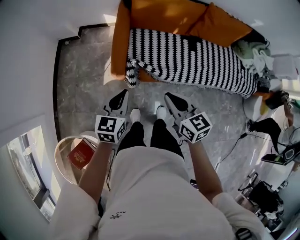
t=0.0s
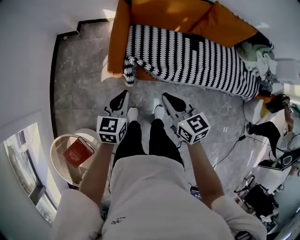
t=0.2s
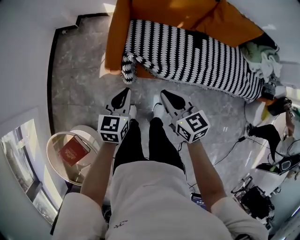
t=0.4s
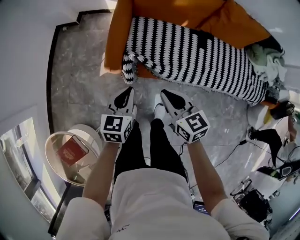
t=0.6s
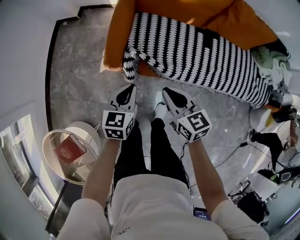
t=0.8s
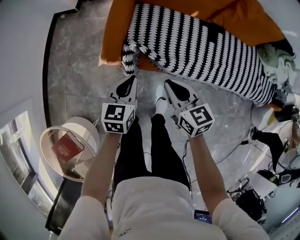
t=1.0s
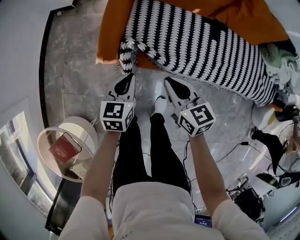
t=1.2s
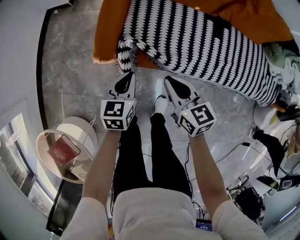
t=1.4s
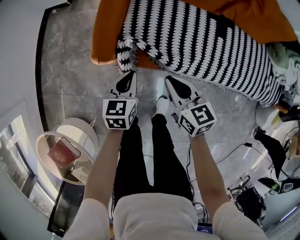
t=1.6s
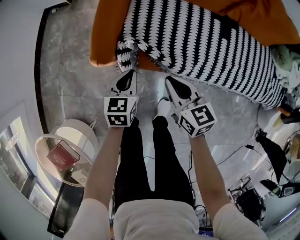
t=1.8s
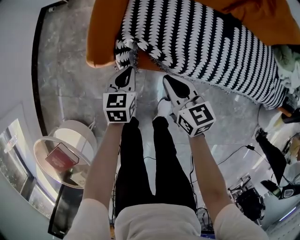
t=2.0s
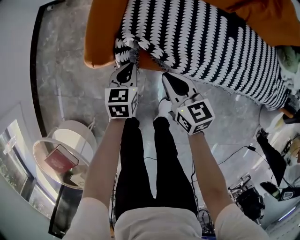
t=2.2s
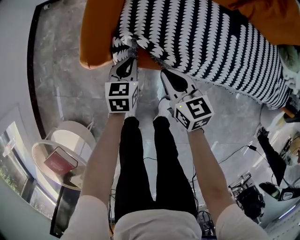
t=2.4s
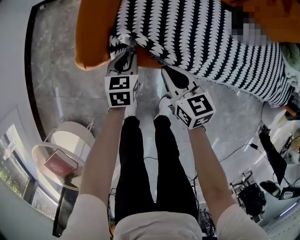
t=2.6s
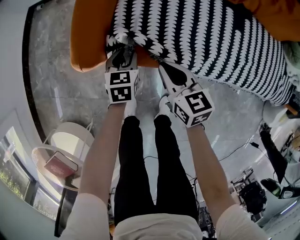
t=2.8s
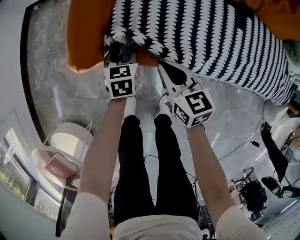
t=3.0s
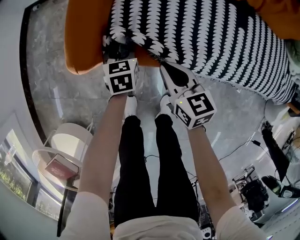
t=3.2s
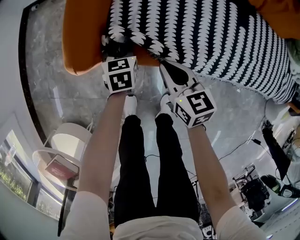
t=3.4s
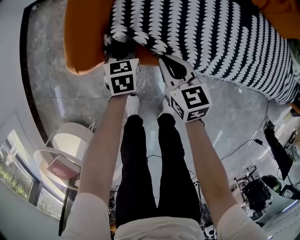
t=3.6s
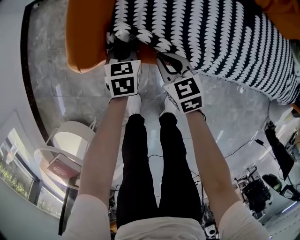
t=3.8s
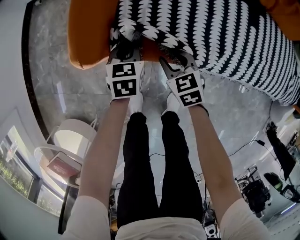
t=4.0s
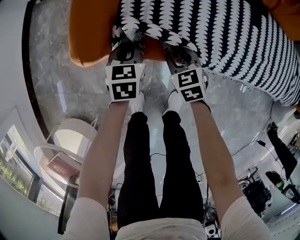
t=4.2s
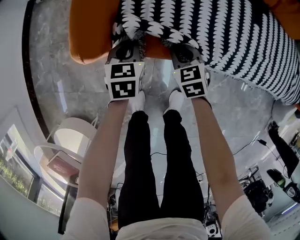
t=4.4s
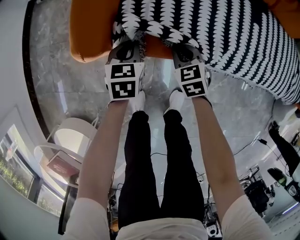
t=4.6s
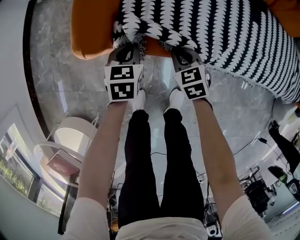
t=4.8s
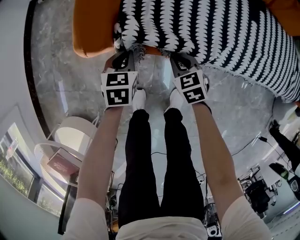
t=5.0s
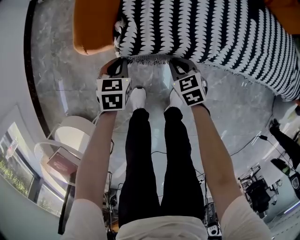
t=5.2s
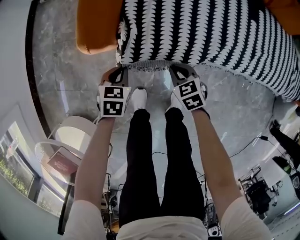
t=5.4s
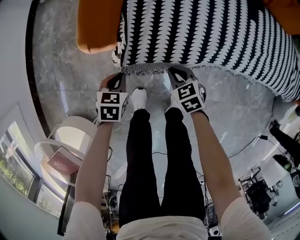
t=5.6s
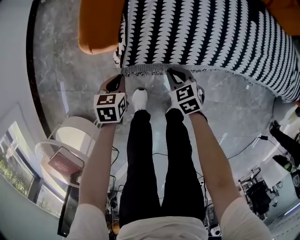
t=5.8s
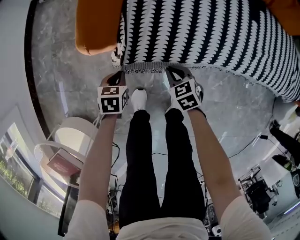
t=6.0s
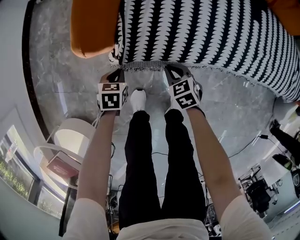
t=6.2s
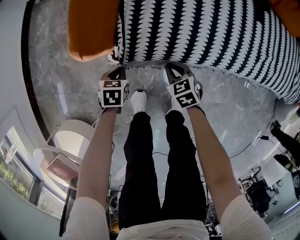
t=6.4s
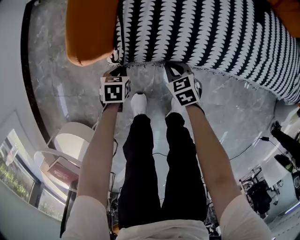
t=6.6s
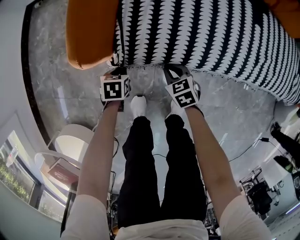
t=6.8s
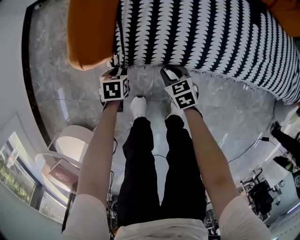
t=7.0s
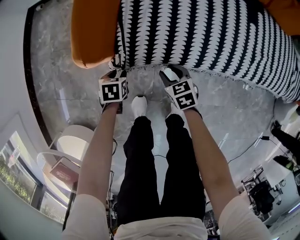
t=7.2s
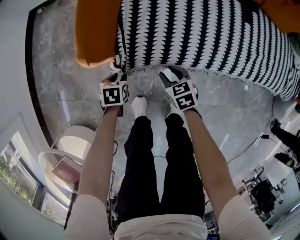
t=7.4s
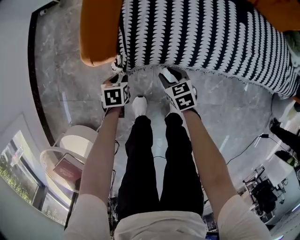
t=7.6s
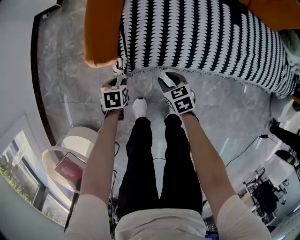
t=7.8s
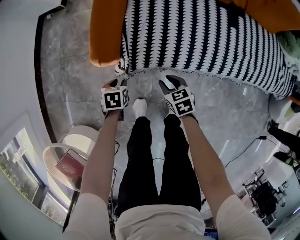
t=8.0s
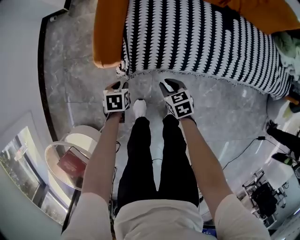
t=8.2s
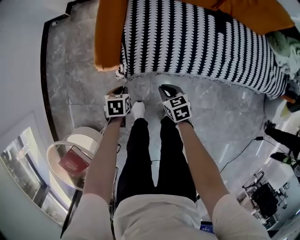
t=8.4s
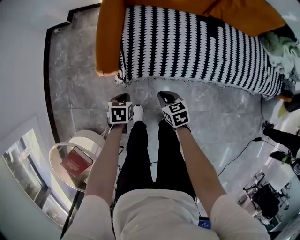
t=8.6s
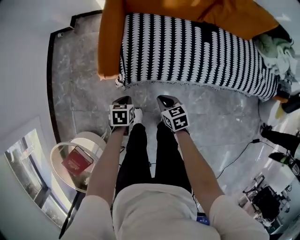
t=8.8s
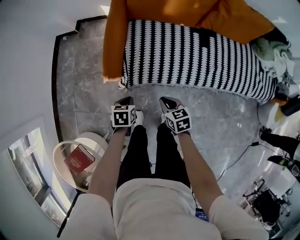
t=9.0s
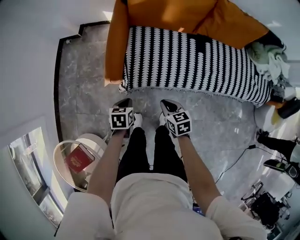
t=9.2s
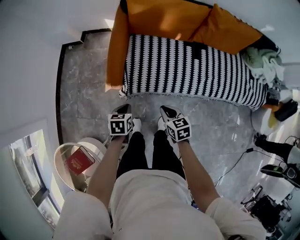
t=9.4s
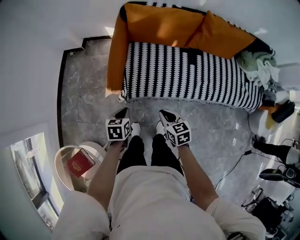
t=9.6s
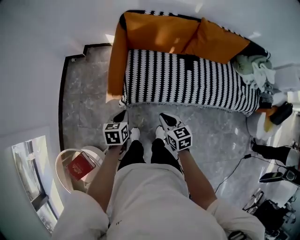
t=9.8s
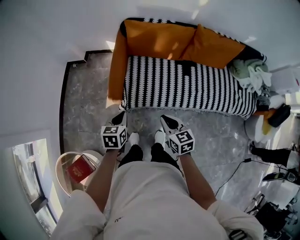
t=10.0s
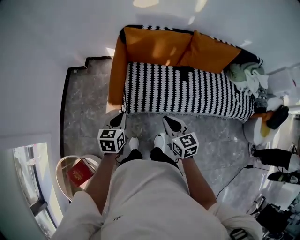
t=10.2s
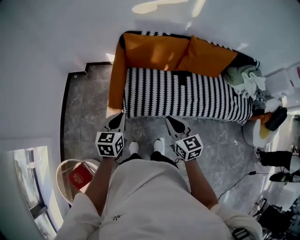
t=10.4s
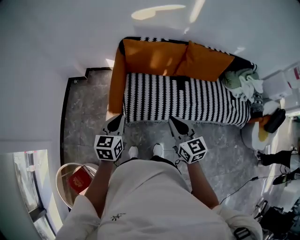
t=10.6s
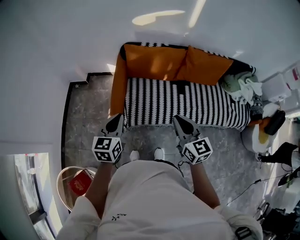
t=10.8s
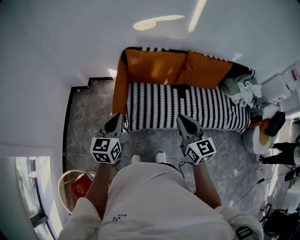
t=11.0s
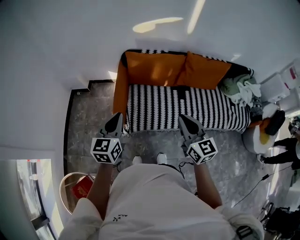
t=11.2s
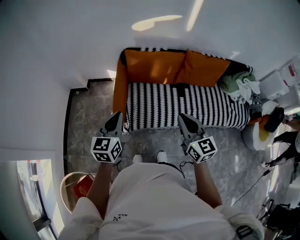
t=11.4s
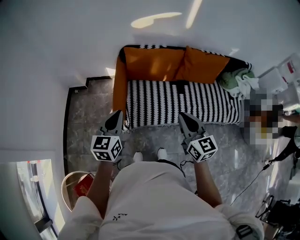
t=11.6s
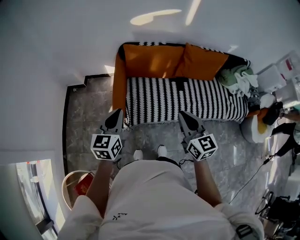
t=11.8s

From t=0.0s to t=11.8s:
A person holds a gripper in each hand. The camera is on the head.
From t=0.0s to t=1.4s: Both grippers move downward, roughly 25 cm.
From t=1.4s to t=3.0s: The left gripper travels downward and forward by approximately 25 cm, and opens up; the right gripper moves downward, approximately 20 cm.
From t=3.0s to t=4.4s: The right gripper heads downward, covering approximately 10 cm, changes its angle by approximately 30 degrees, and opens, then closes again. The left gripper closes.
From t=4.4s to t=6.0s: The right gripper moves backward and downward, roughly 10 cm. Meanwhile the left gripper goes roughly 15 cm backward, to the left and downward.
From t=6.0s to t=7.4s: The left gripper opens up; the right gripper opens.
From t=7.4s to t=8.8s: Both grippers travel together upward, some 25 cm. The right gripper closes; the left gripper closes.
From t=8.8s to t=10.4s: The two grippers go roughly 40 cm upward. The left gripper angles its fingers upward, by roughly 30 degrees. Meanwhile the right gripper swivels about 30 degrees.
From t=10.4s to t=11.8s: Both grippers move upward, approximately 10 cm.

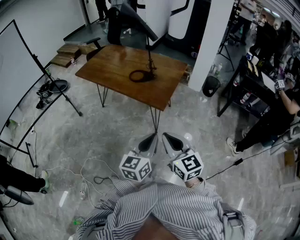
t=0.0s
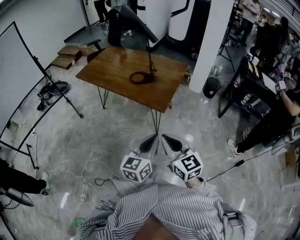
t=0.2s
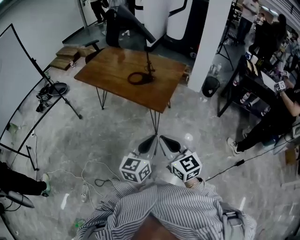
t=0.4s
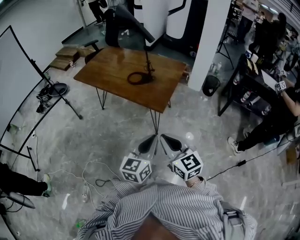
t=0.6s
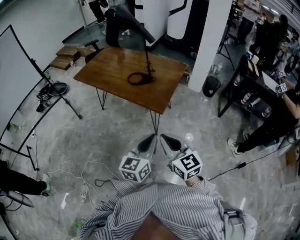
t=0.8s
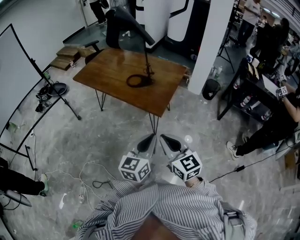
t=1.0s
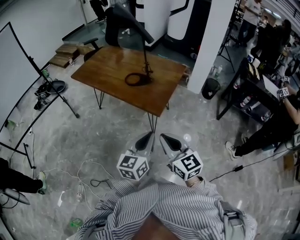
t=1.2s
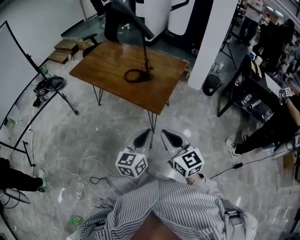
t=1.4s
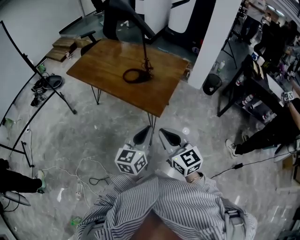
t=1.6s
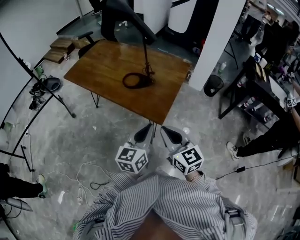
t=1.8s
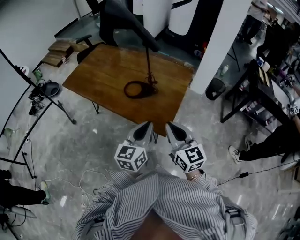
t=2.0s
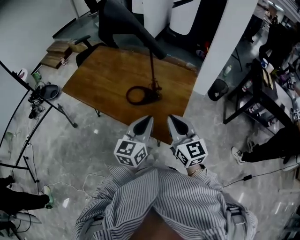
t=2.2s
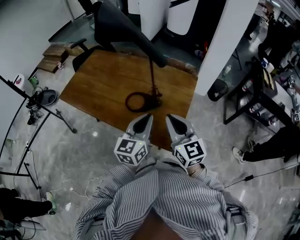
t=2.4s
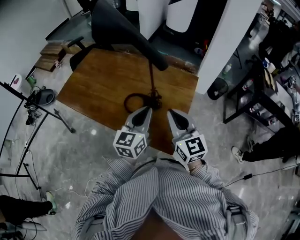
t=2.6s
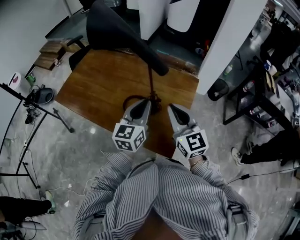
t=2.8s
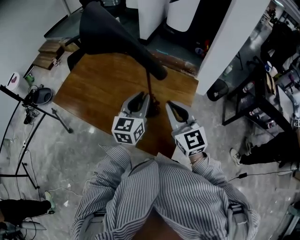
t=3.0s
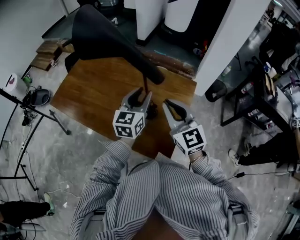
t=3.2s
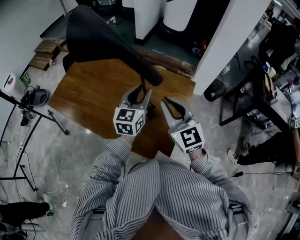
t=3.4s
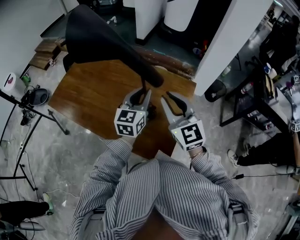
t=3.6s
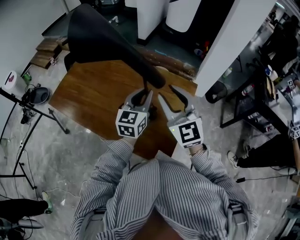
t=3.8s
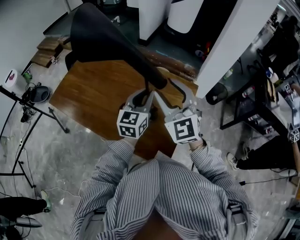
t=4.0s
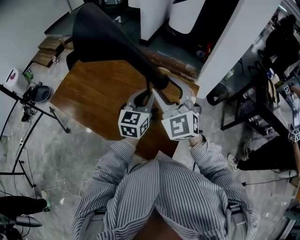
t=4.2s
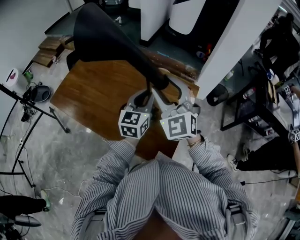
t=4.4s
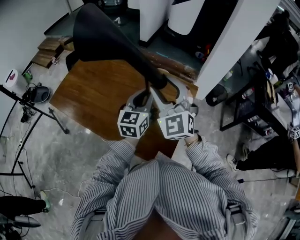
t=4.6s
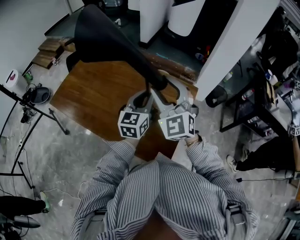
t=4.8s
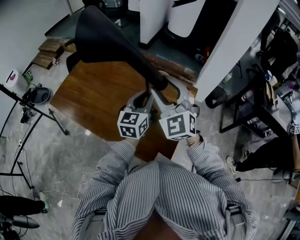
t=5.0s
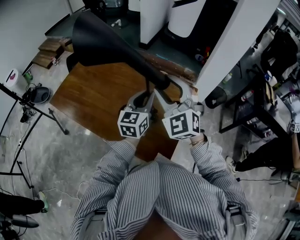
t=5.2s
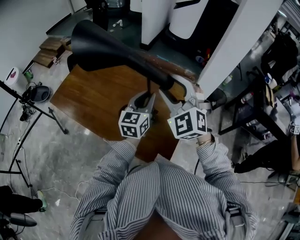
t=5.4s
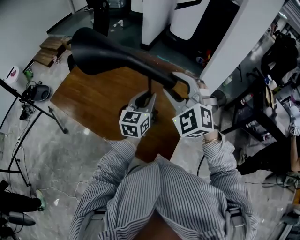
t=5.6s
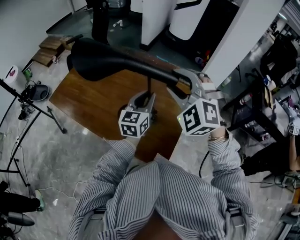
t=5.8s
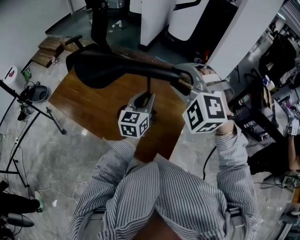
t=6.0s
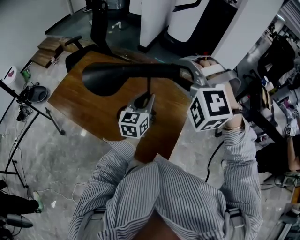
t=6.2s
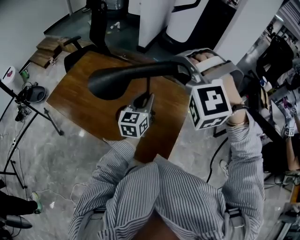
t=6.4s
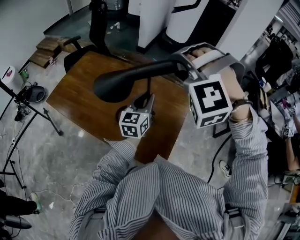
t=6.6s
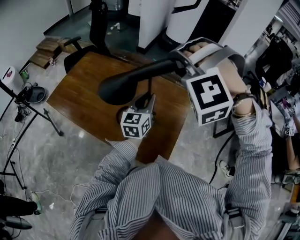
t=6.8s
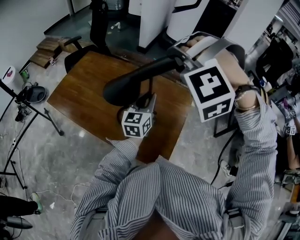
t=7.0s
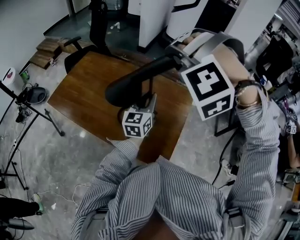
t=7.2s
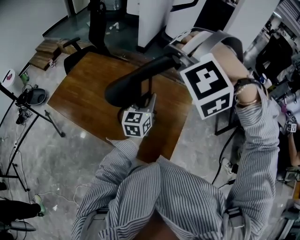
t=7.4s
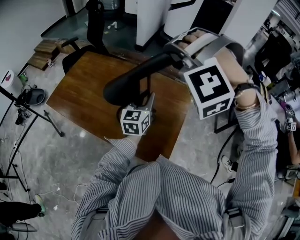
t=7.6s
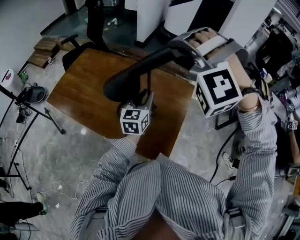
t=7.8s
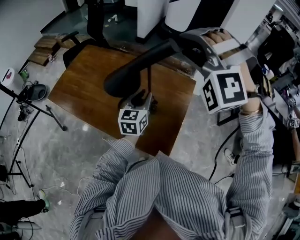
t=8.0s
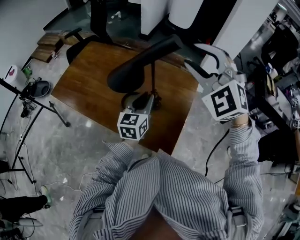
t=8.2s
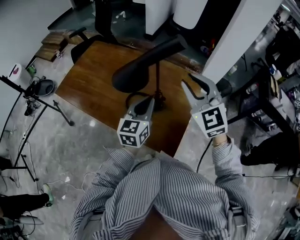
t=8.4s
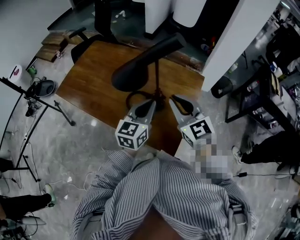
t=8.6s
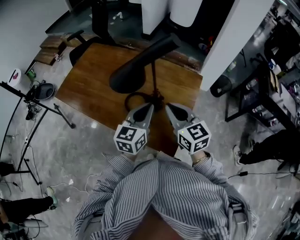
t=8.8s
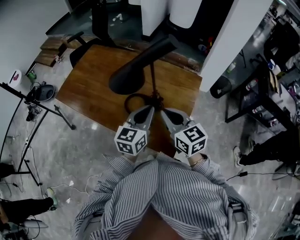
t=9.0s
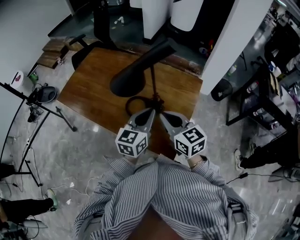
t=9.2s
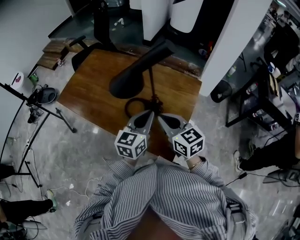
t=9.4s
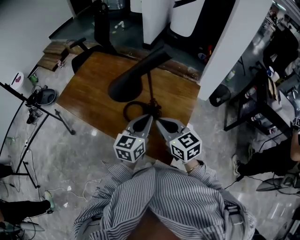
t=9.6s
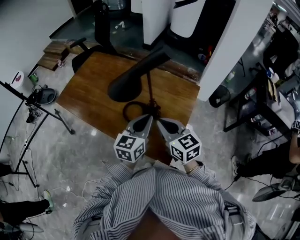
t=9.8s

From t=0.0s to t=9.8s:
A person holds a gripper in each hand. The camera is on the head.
From t=0.0s to t=1.4s: Both grippers move forward, roughly 5 cm.
From t=1.4s to t=2.8s: The pair of grippers is taken forward, approximately 40 cm.
From t=2.8s to t=4.2s: The left gripper goes approximately 10 cm forward, and opens, then closes again, while the right gripper shifts some 15 cm forward and upward, swivels some 40 degrees, and opens its fingers.
From t=4.2s to t=5.6s: The right gripper rotates approximately 20 degrees.
From t=5.6s to t=7.0s: The right gripper shifts some 10 cm upward, and rolls counterclockwise, seen from behind, by about 60 degrees.
From t=7.0s to t=8.4s: The left gripper goes some 10 cm backward, while the right gripper moves downward, some 10 cm, and twists approximately 80 degrees clockwise, seen from behind.
From t=8.4s to t=9.8s: The right gripper shifts roughly 15 cm downward, backward and to the left, turns by about 40 degrees, and closes.

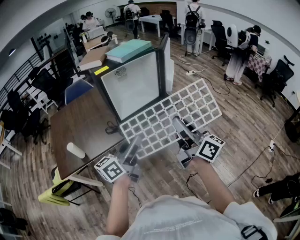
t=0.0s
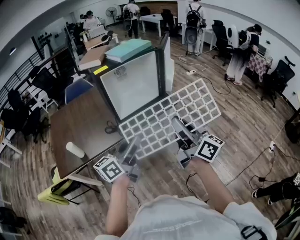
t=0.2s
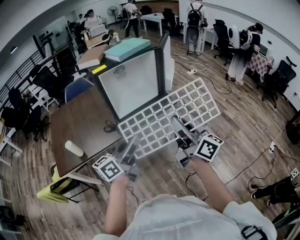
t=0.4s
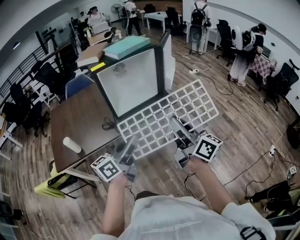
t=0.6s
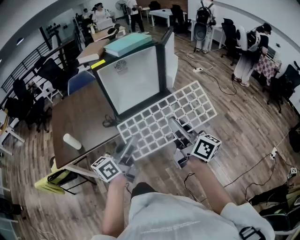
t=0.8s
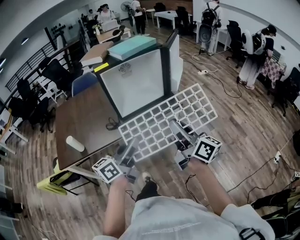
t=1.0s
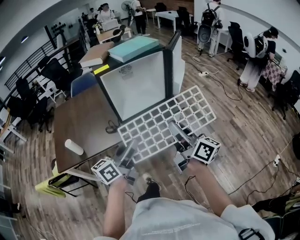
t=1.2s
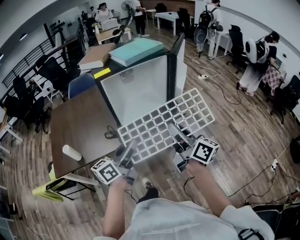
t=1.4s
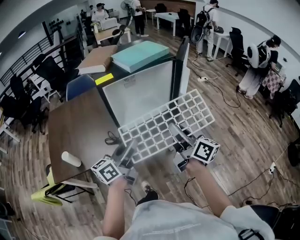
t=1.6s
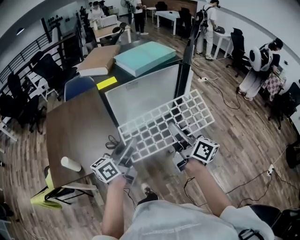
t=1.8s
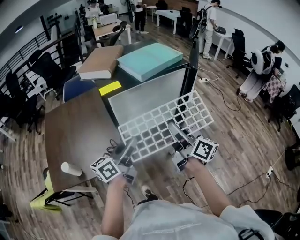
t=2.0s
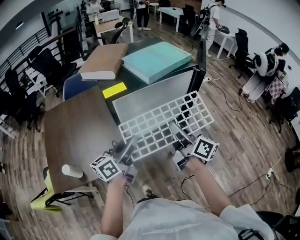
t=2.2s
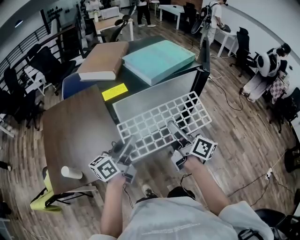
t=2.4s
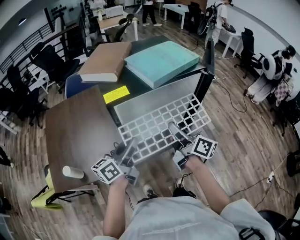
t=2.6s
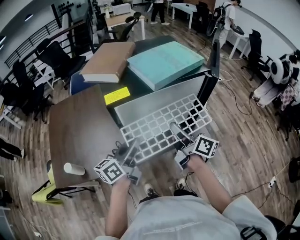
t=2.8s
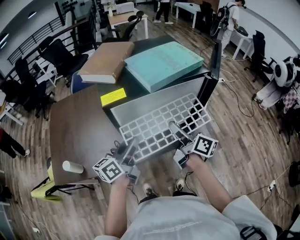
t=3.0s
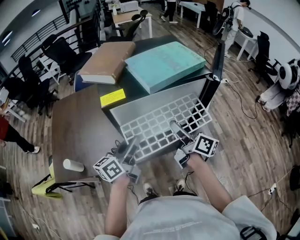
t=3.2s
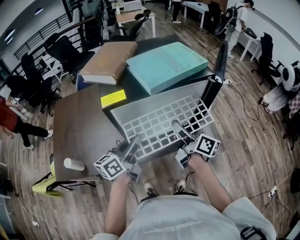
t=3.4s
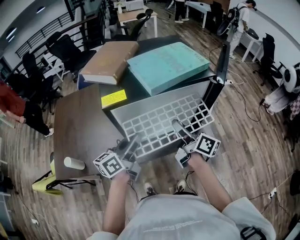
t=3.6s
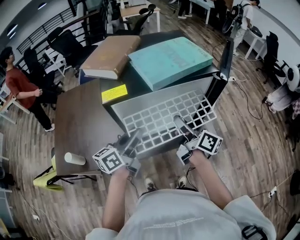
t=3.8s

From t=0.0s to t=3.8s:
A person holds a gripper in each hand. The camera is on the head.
From t=0.0s to t=1.2s: The right gripper goes some 10 cm forward. The left gripper moves roughly 5 cm.
From t=1.2s to t=2.6s: The right gripper moves forward, some 25 cm, while the left gripper is displaced forward and to the left by approximately 25 cm.
From t=2.6s to t=3.8s: The right gripper shifts roughly 5 cm forward.
